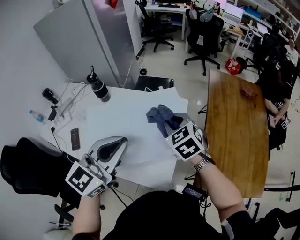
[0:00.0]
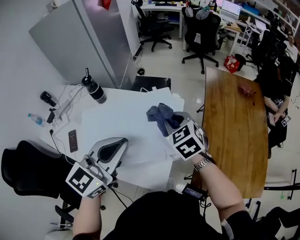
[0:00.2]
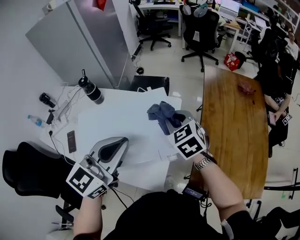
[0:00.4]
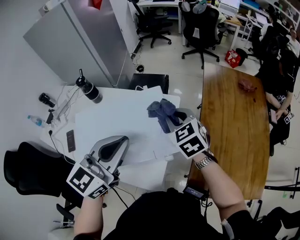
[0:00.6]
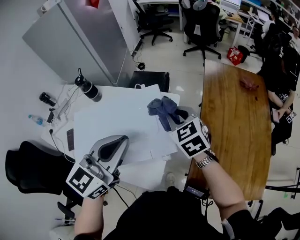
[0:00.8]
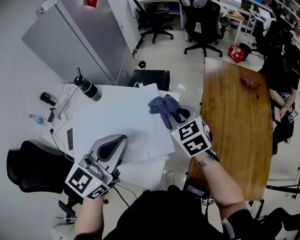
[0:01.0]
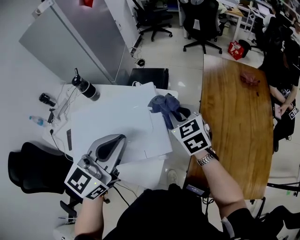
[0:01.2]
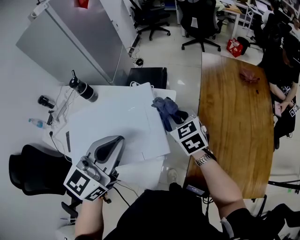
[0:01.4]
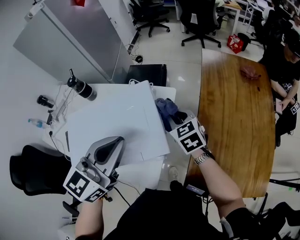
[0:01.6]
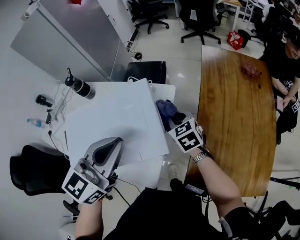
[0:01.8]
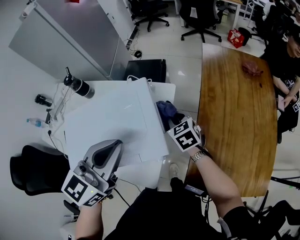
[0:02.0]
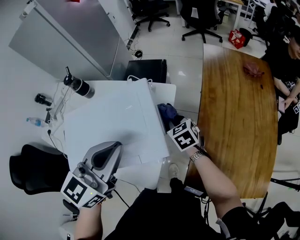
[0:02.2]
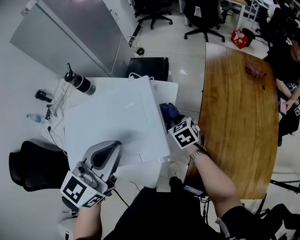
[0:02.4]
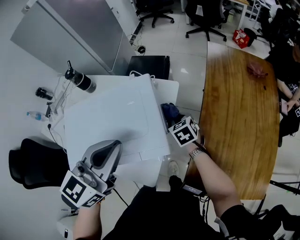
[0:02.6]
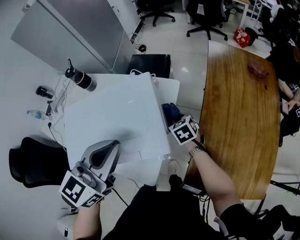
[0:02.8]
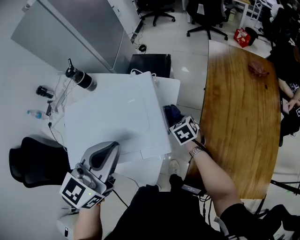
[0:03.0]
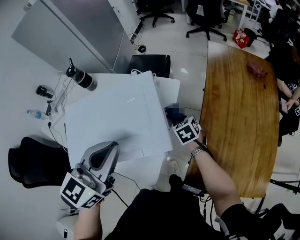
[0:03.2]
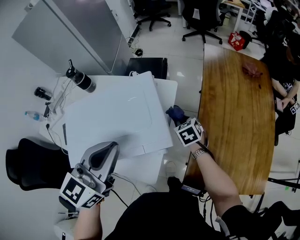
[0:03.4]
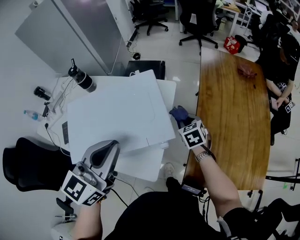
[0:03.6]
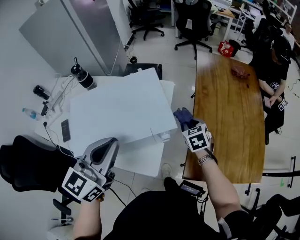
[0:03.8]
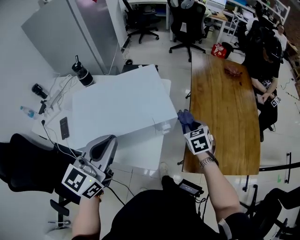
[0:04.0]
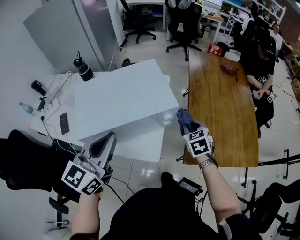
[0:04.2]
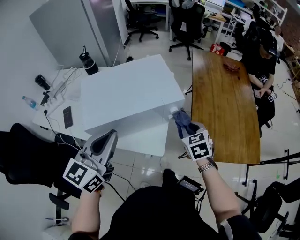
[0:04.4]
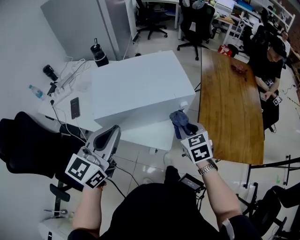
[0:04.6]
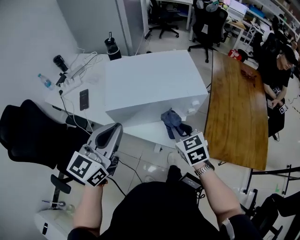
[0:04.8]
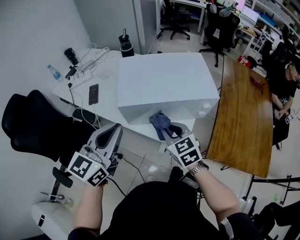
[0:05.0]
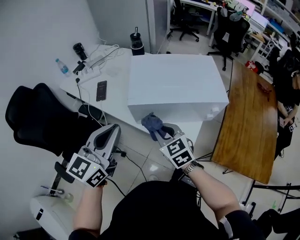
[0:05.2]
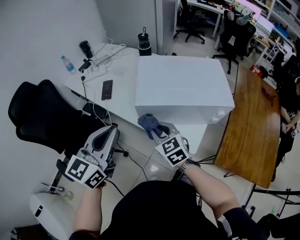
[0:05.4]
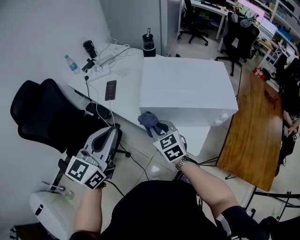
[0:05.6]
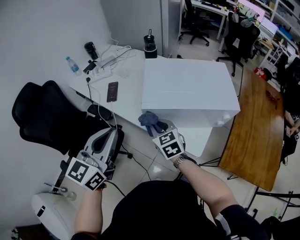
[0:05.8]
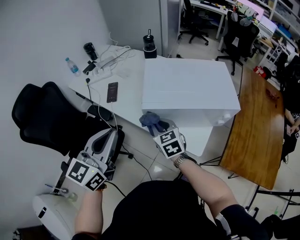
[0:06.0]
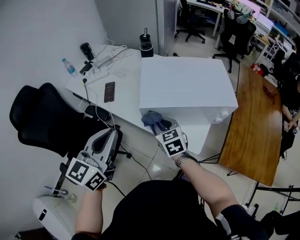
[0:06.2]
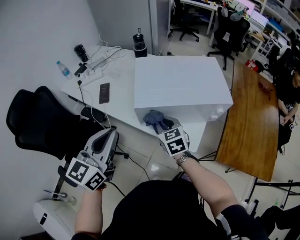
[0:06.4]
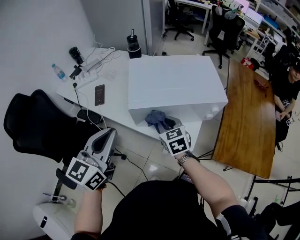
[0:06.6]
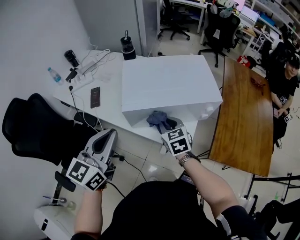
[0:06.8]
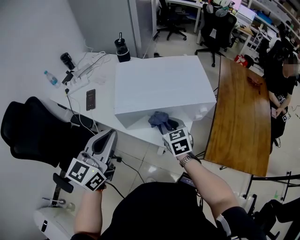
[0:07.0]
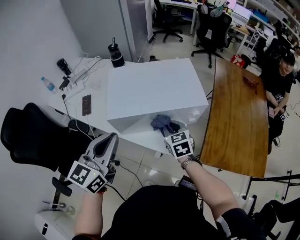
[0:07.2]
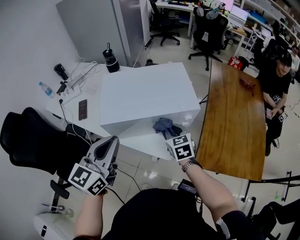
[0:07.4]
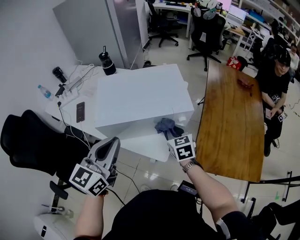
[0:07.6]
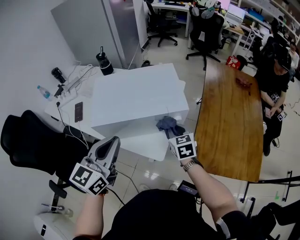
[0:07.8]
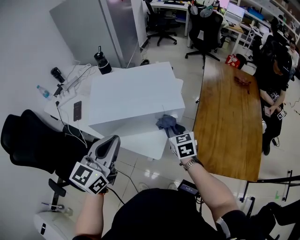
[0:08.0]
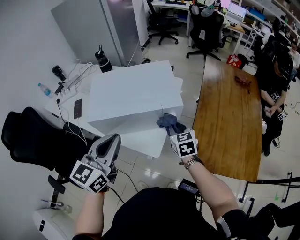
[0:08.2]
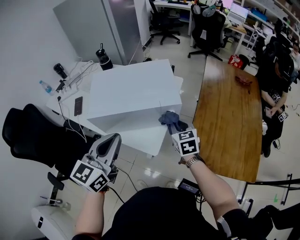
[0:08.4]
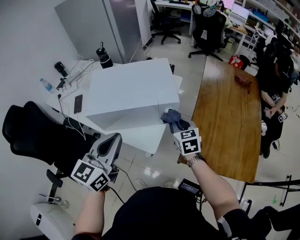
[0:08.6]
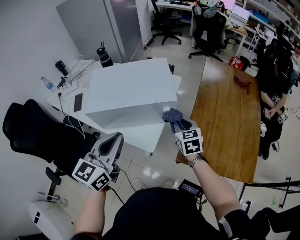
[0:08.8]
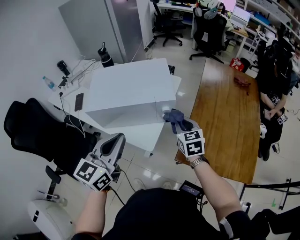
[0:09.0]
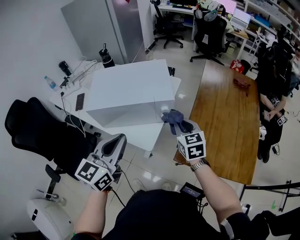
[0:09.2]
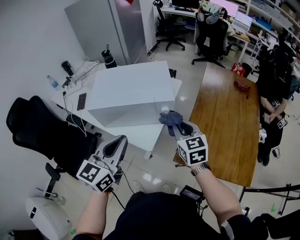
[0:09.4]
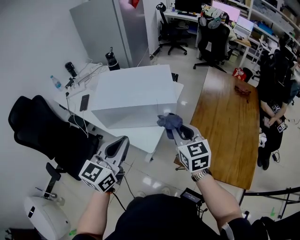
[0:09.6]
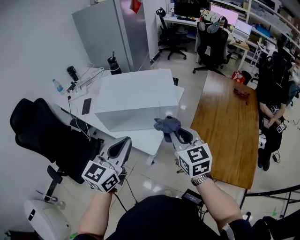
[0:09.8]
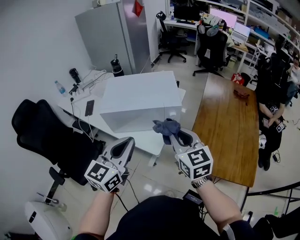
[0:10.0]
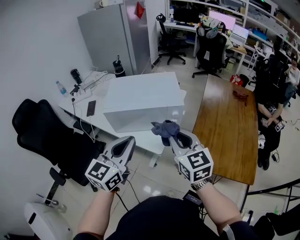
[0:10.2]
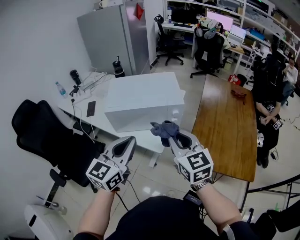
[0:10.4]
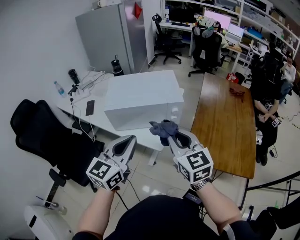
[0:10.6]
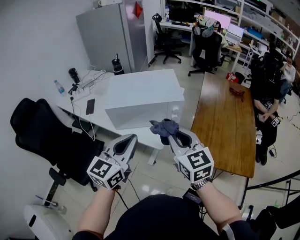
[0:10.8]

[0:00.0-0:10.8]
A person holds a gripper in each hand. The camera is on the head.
0:00.0 to 0:01.6: The left gripper heads to the right and forward, covering some 15 cm; the right gripper goes approximately 15 cm to the right, downward and forward.
0:01.6 to 0:03.0: The right gripper travels downward by roughly 15 cm.
0:03.0 to 0:04.6: The right gripper is displaced backward and upward by about 30 cm, while the left gripper heads backward and to the left, covering approximately 25 cm.
0:04.6 to 0:06.2: The left gripper moves about 20 cm. Meanwhile the right gripper changes place by about 30 cm, and rotates some 20 degrees.
0:06.2 to 0:07.8: Both grippers move to the right, some 25 cm.
0:07.8 to 0:09.2: The right gripper goes about 10 cm to the right and upward. Meanwhile the left gripper travels to the right and backward by some 10 cm.
0:09.2 to 0:10.8: The left gripper heads backward, covering some 5 cm. The right gripper heads backward, upward and to the left, covering approximately 25 cm.

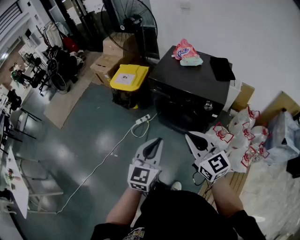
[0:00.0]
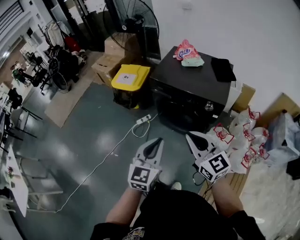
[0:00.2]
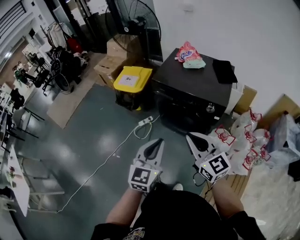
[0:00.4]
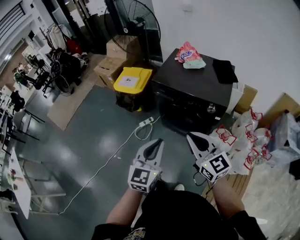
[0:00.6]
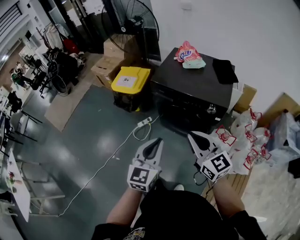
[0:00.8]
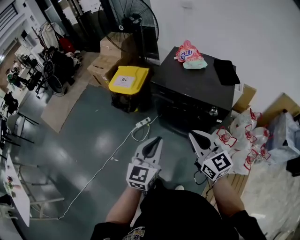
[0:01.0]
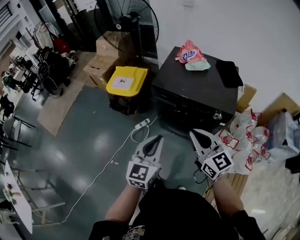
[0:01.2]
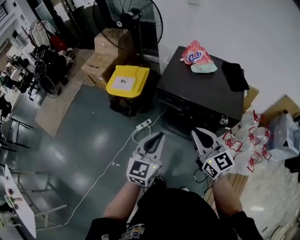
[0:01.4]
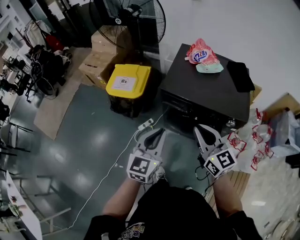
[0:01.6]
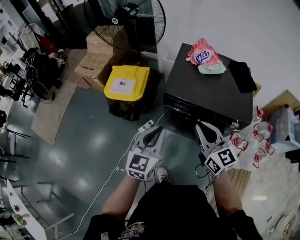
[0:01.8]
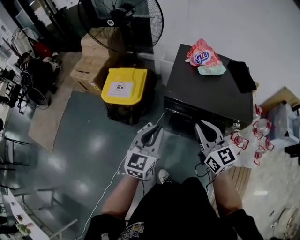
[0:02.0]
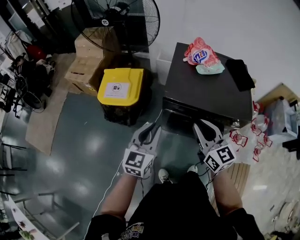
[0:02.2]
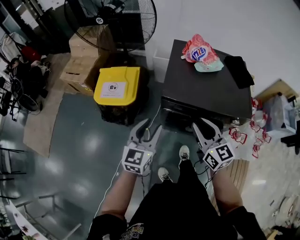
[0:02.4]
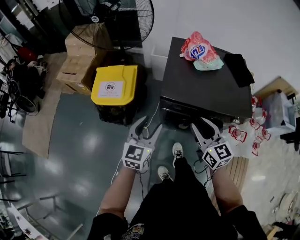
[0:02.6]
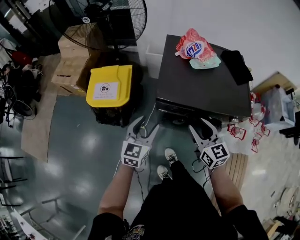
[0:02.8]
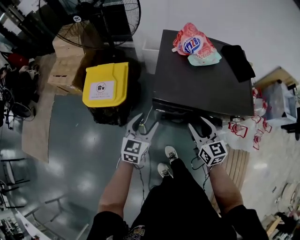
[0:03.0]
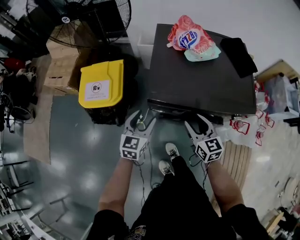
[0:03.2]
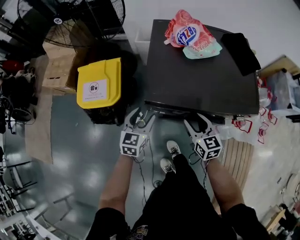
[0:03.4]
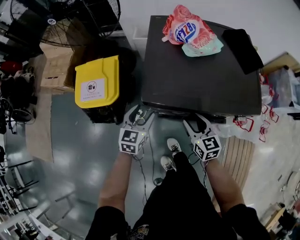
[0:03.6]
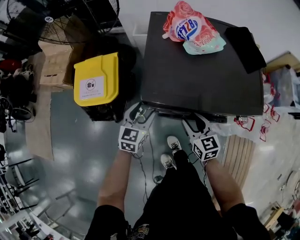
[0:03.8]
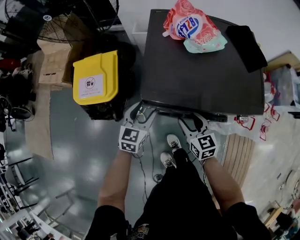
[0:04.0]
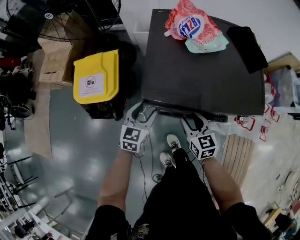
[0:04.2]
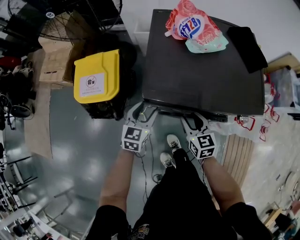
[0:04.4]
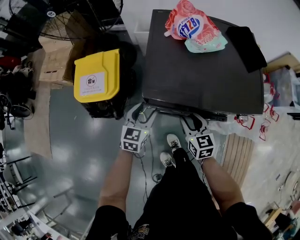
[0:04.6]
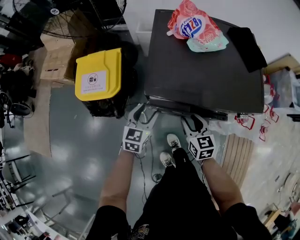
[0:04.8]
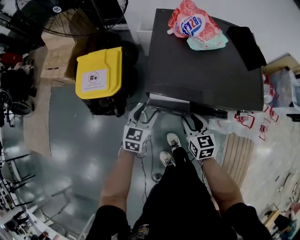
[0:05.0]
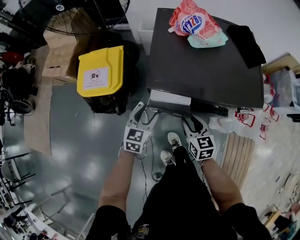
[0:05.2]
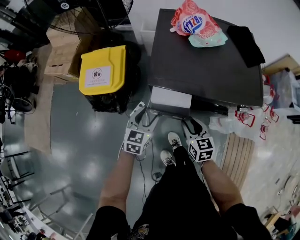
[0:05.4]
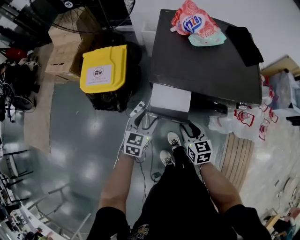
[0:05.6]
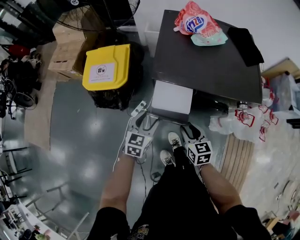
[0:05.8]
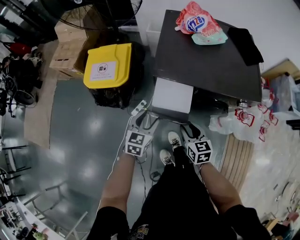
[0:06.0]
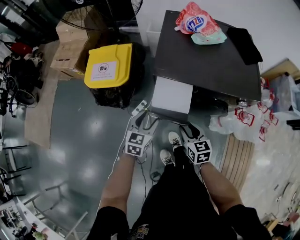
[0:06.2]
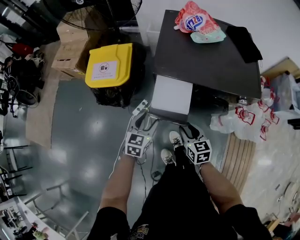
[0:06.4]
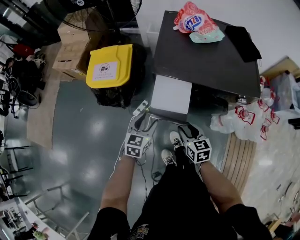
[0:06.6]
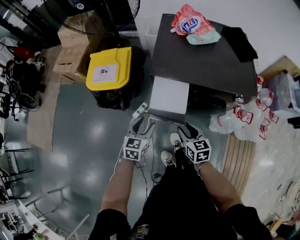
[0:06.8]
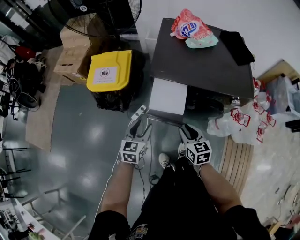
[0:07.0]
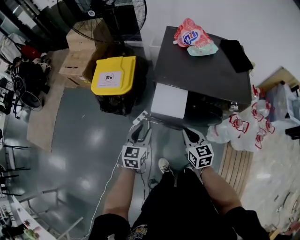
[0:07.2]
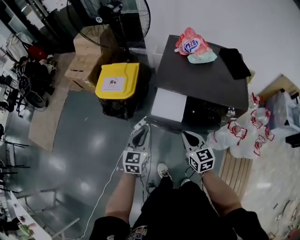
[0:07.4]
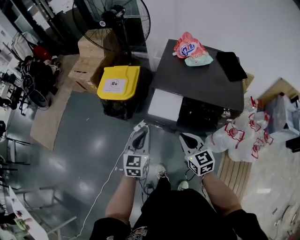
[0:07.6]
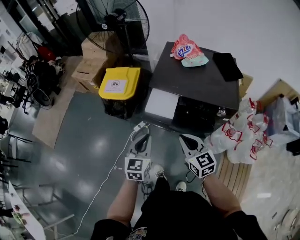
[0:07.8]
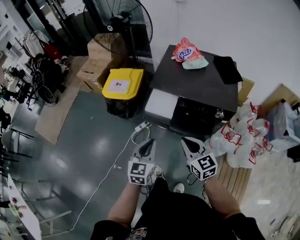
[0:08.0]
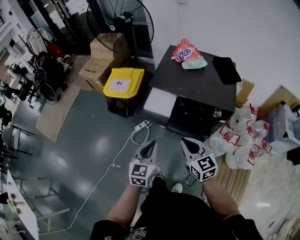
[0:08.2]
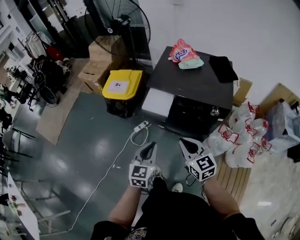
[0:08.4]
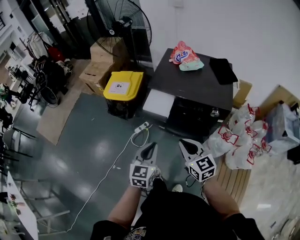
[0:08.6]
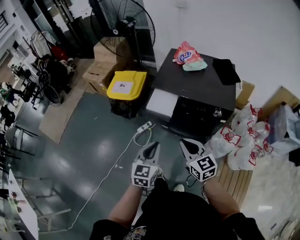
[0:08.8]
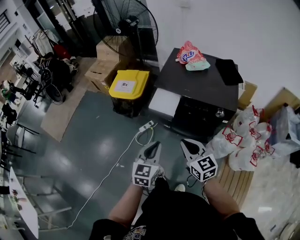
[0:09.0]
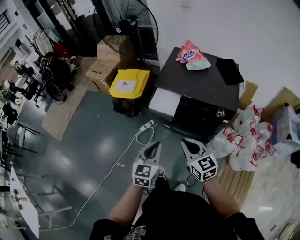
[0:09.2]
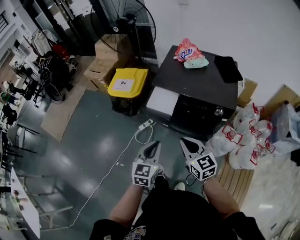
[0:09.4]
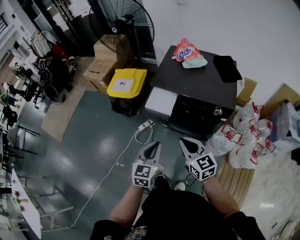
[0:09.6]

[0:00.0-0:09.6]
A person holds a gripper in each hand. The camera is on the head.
0:00.0 to 0:01.6: The right gripper is displaced forward by about 25 cm. The left gripper goes roughly 30 cm forward and to the left.
0:01.6 to 0:03.2: The right gripper shifts about 25 cm downward and forward, rotates some 30 degrees, and opens; the left gripper goes about 30 cm forward and downward, and opens its fingers.
0:03.2 to 0:04.8: The two grippers go about 5 cm downward.
0:04.8 to 0:06.4: Both grippers travel together backward, approximately 15 cm.
0:06.4 to 0:08.0: The right gripper travels upward and backward by about 25 cm, swivels approximately 30 degrees, and closes, while the left gripper moves backward, upward and to the right, approximately 25 cm, swivels approximately 20 degrees, and closes.
0:08.0 to 0:09.6: The left gripper goes approximately 5 cm backward.

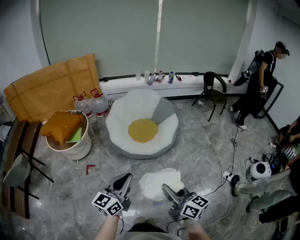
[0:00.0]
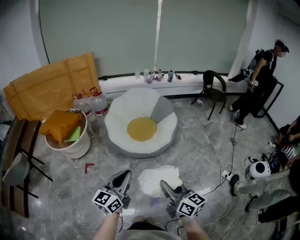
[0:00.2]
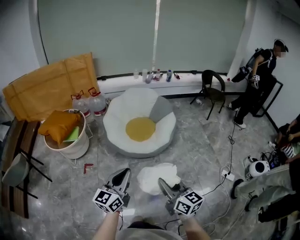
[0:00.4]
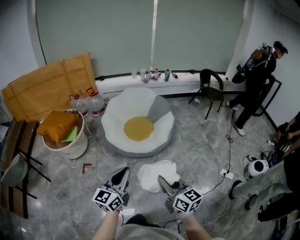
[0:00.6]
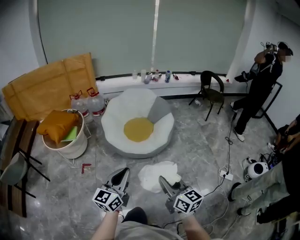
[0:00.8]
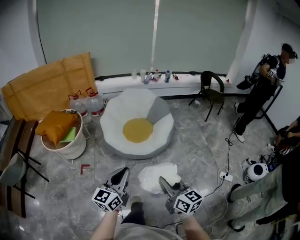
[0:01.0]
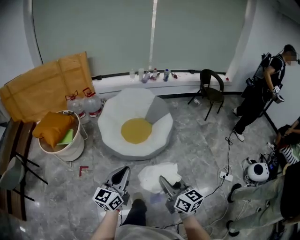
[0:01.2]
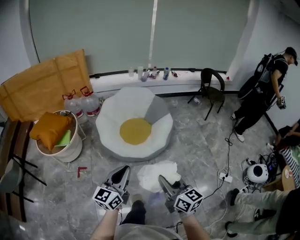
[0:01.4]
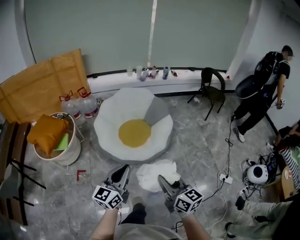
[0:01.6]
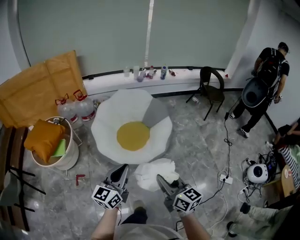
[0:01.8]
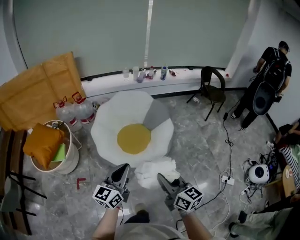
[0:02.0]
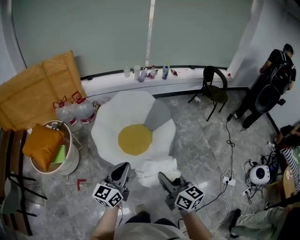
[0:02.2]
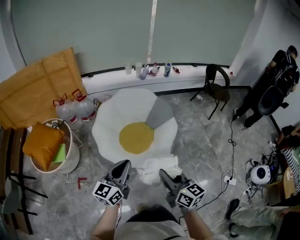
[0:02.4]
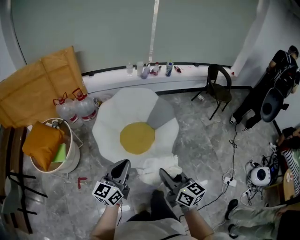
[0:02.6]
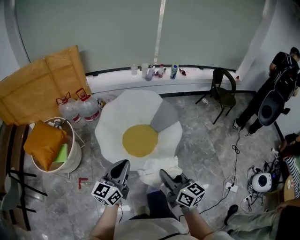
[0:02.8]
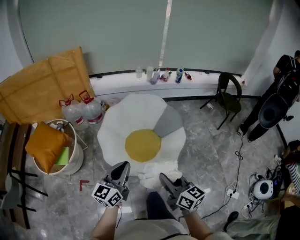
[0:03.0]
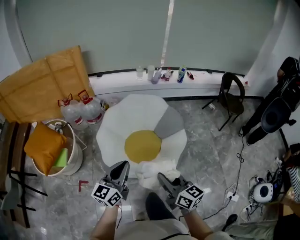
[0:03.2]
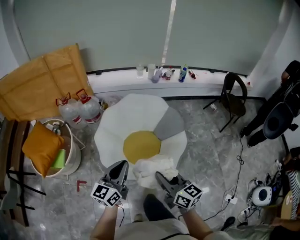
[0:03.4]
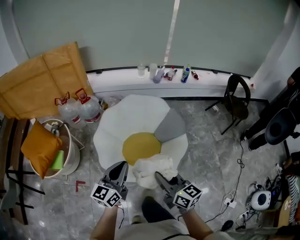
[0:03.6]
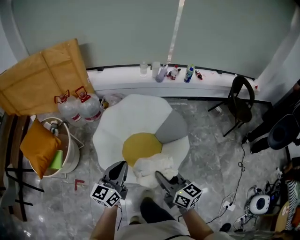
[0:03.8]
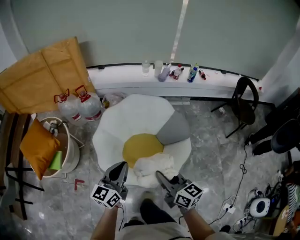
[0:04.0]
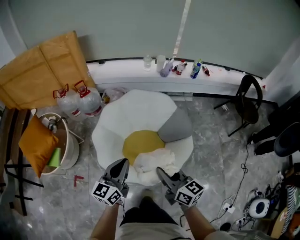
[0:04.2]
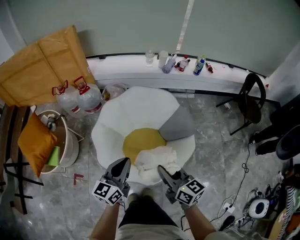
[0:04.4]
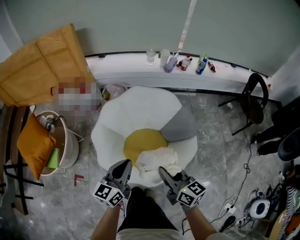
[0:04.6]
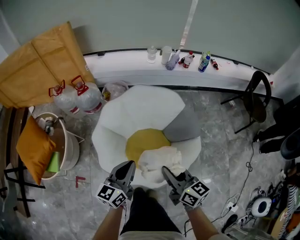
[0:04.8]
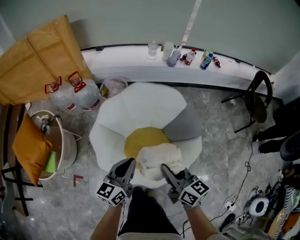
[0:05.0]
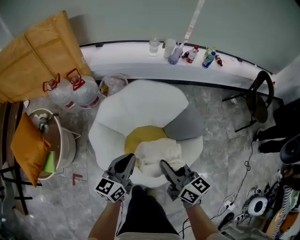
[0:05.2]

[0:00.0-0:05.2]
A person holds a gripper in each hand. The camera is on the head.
0:00.0 to 0:01.8: The two grippers go some 25 cm forward.
0:01.8 to 0:03.4: The two grippers go some 30 cm forward.
0:03.4 to 0:05.2: The right gripper heads forward, covering approximately 30 cm. The left gripper travels forward and downward by some 30 cm.
